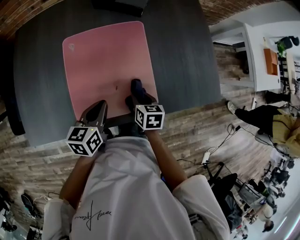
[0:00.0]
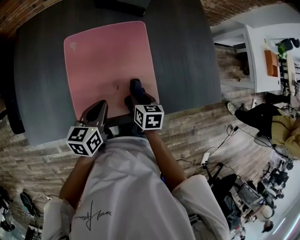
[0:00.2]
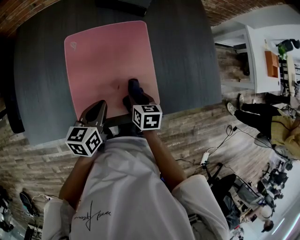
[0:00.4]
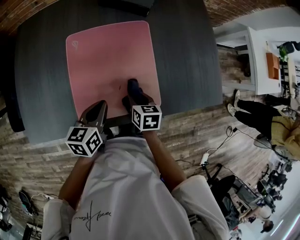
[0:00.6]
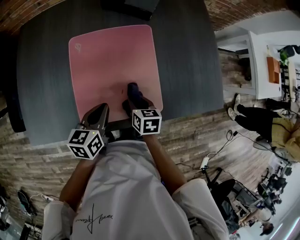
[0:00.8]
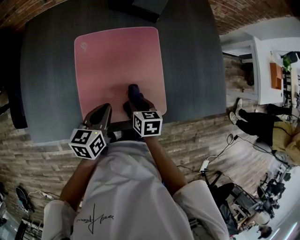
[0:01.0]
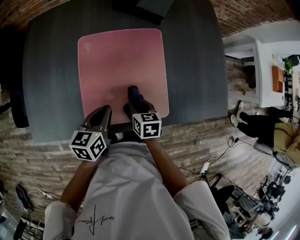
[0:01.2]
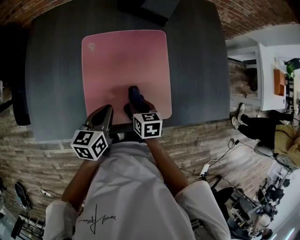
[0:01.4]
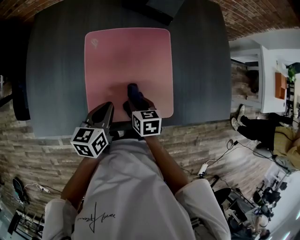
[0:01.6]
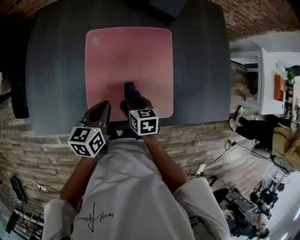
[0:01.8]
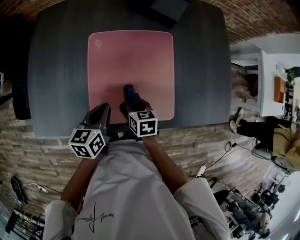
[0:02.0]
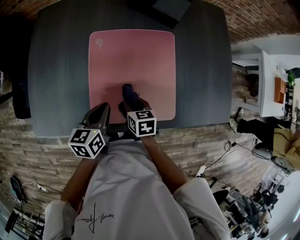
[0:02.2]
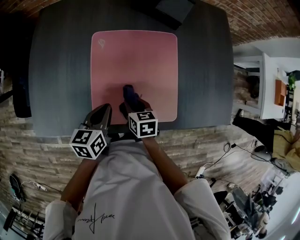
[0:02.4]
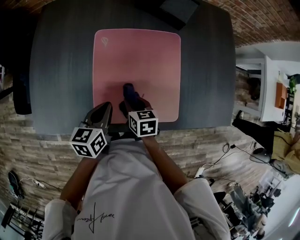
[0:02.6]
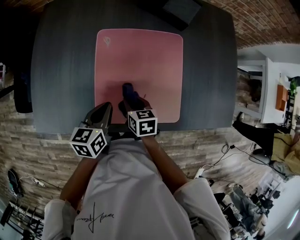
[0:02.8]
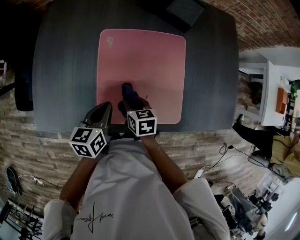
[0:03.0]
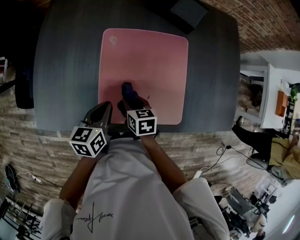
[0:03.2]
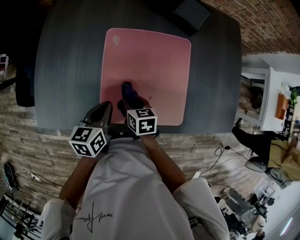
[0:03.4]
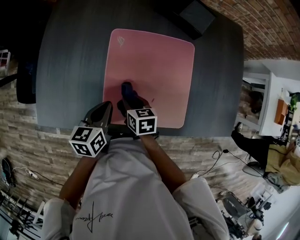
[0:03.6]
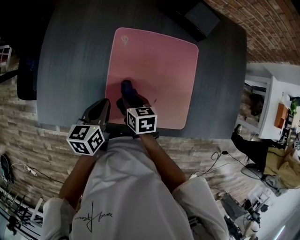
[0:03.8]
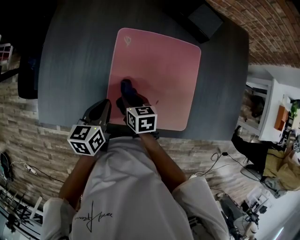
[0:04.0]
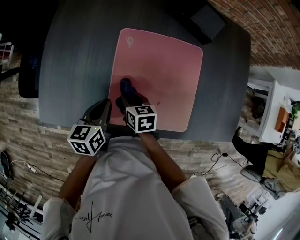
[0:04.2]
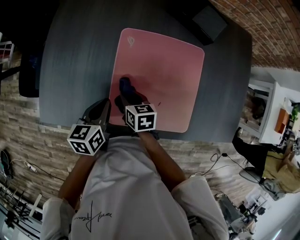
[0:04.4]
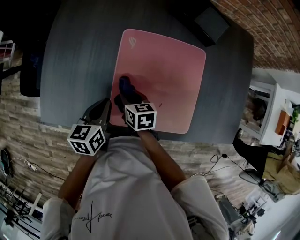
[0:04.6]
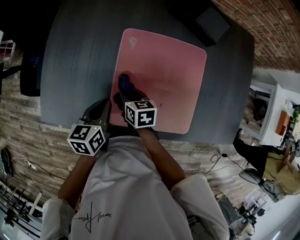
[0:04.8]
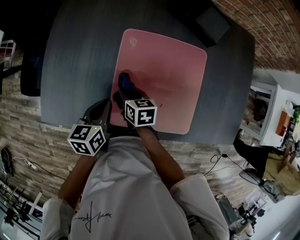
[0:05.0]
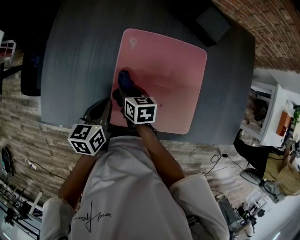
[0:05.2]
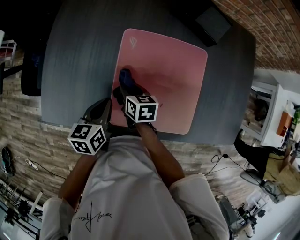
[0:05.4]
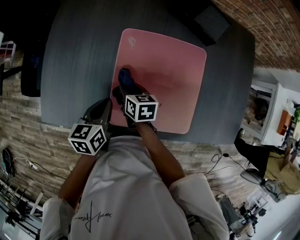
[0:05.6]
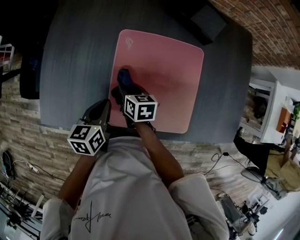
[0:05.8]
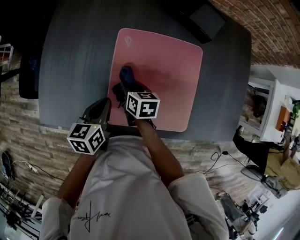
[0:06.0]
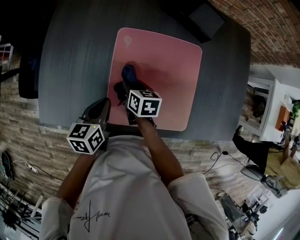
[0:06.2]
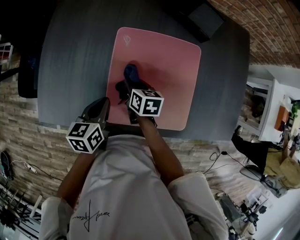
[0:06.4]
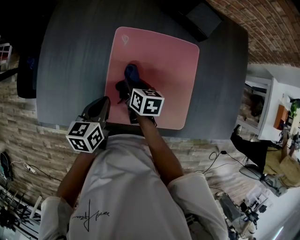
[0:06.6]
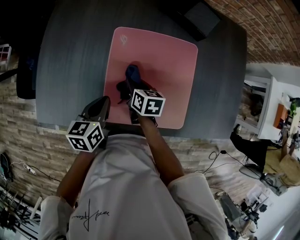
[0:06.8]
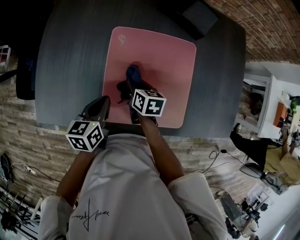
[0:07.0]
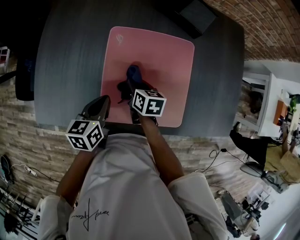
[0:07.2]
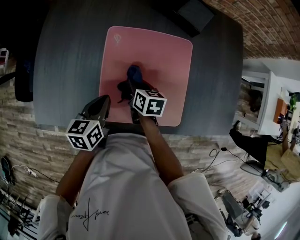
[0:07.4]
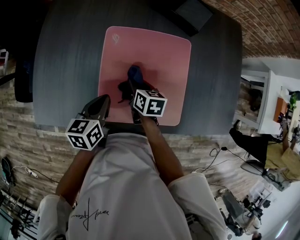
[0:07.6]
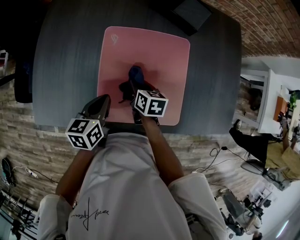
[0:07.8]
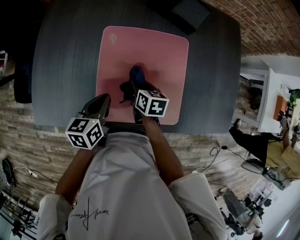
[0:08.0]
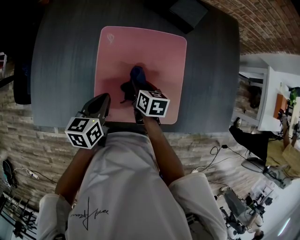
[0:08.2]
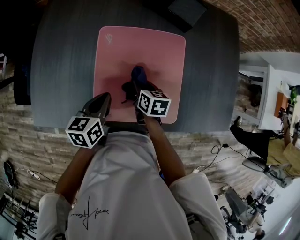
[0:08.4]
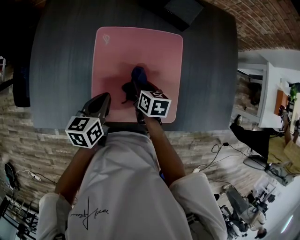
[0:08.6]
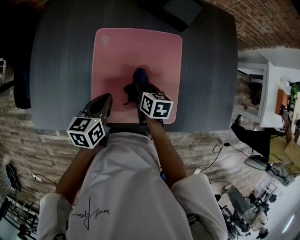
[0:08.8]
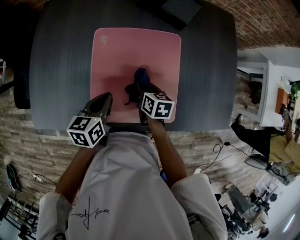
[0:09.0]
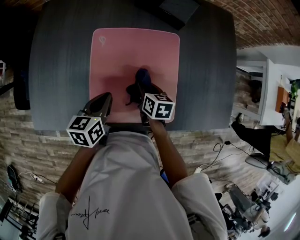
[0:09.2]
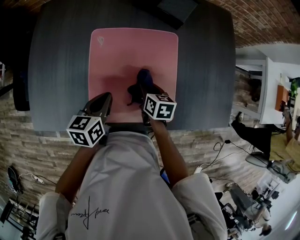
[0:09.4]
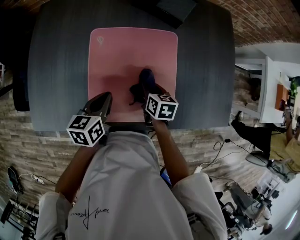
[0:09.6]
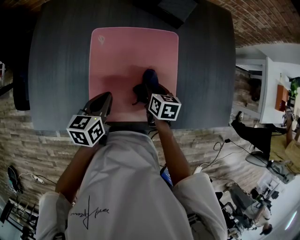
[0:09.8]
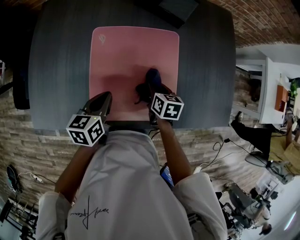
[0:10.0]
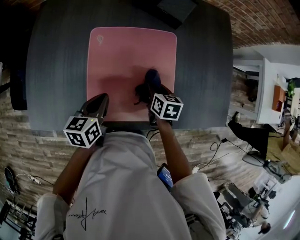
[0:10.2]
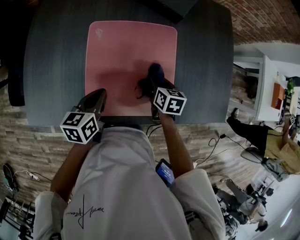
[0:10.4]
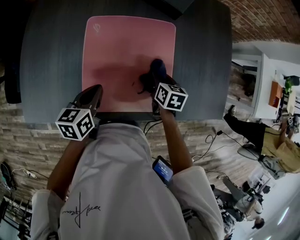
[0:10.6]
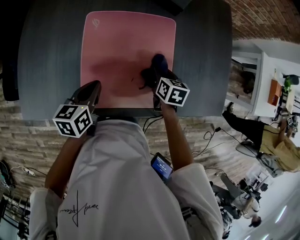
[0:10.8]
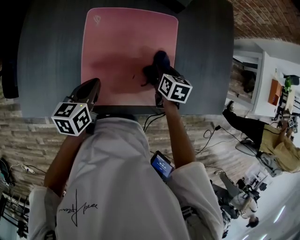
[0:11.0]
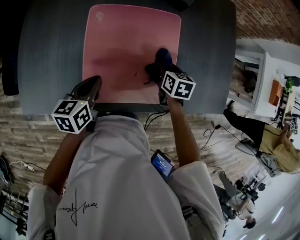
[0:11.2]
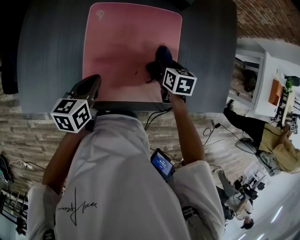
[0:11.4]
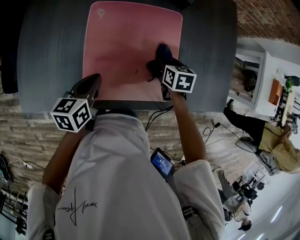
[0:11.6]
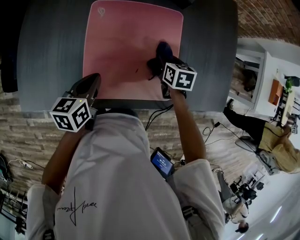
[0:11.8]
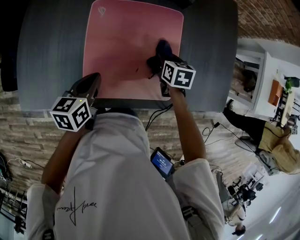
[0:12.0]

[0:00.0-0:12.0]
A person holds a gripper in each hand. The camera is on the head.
0:00.0 to 0:01.6: The right gripper moves to the left, some 10 cm.
0:01.6 to 0:03.0: The two grippers go approximately 5 cm to the left.
0:03.0 to 0:04.4: Both grippers travel together to the left, some 5 cm.
0:04.4 to 0:06.0: The grippers make only small movements.
0:06.0 to 0:07.6: The right gripper shifts approximately 10 cm to the right.
0:07.6 to 0:09.0: The right gripper travels to the right by roughly 5 cm.
0:09.0 to 0:10.4: The right gripper moves to the right, about 10 cm.
0:10.4 to 0:12.0: The grippers make only small movements.

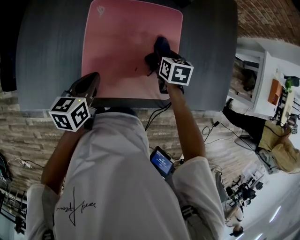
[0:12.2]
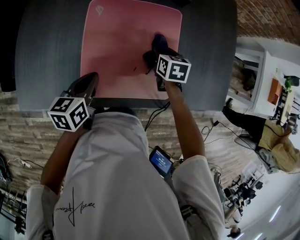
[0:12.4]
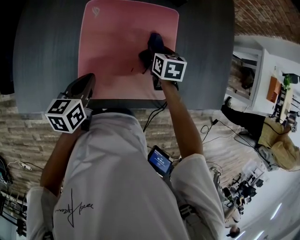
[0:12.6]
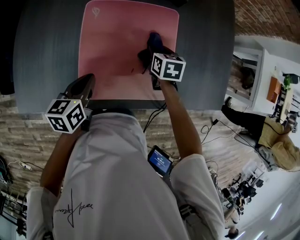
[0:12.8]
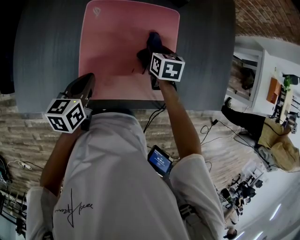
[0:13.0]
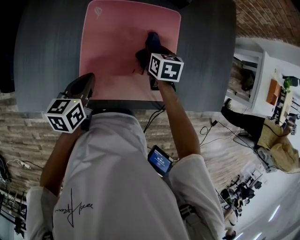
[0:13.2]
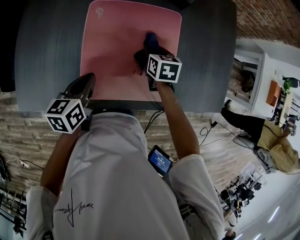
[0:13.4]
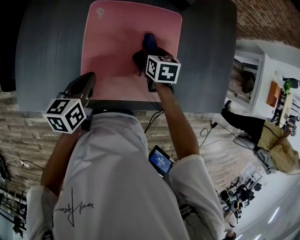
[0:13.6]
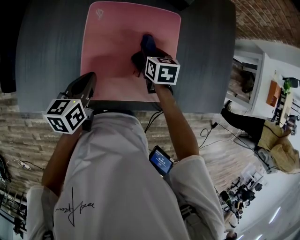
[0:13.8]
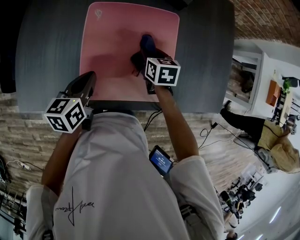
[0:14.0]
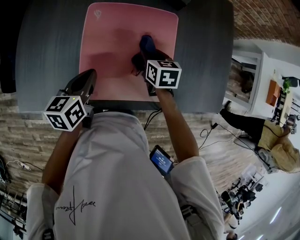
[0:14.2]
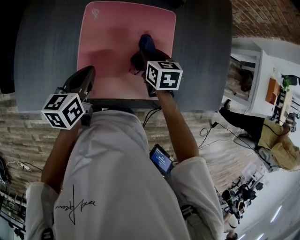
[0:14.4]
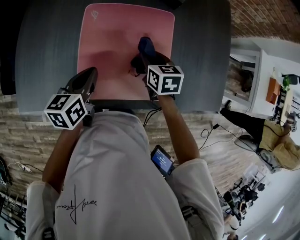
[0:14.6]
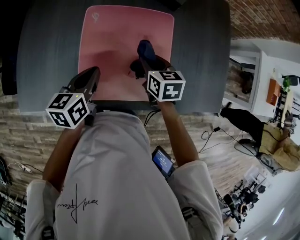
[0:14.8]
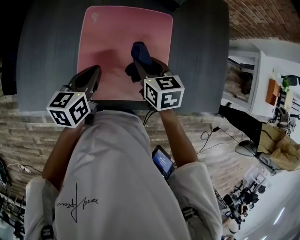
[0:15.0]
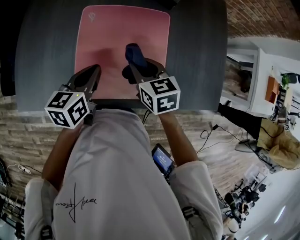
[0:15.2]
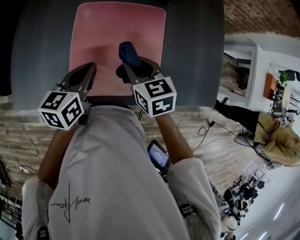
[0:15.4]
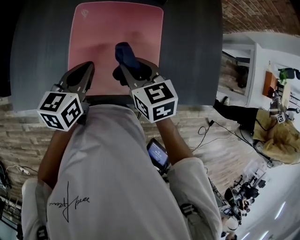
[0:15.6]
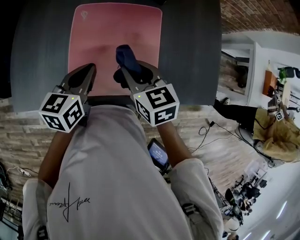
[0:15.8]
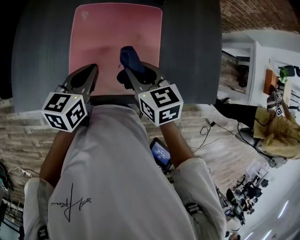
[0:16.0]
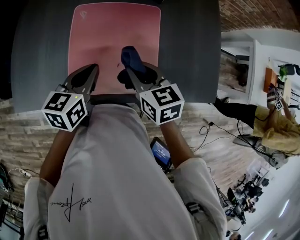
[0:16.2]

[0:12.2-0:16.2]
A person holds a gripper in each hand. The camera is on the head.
0:12.2 to 0:13.6: The right gripper is displaced to the left by about 5 cm.
0:13.6 to 0:14.8: The right gripper shifts approximately 5 cm upward.
0:14.8 to 0:16.2: The right gripper heads backward and upward, covering roughly 10 cm, while the left gripper shifts by about 5 cm.

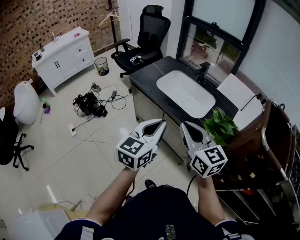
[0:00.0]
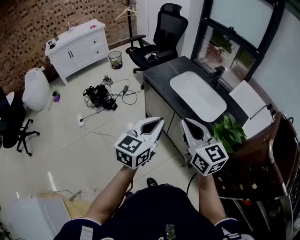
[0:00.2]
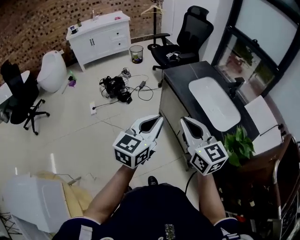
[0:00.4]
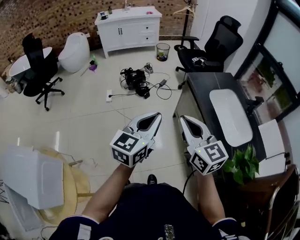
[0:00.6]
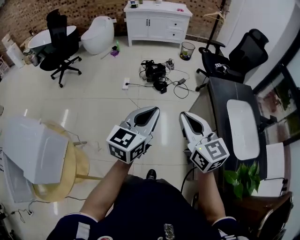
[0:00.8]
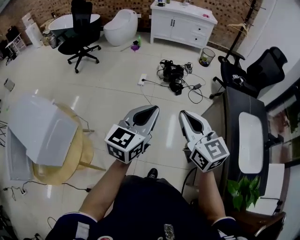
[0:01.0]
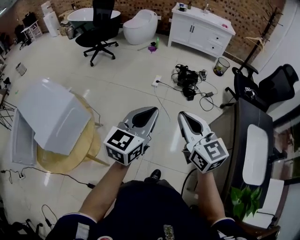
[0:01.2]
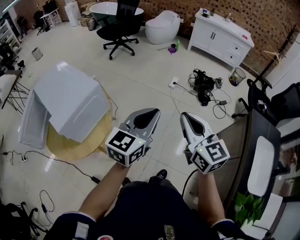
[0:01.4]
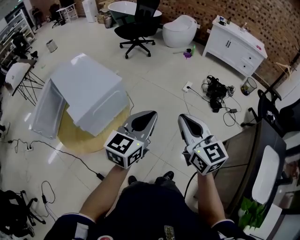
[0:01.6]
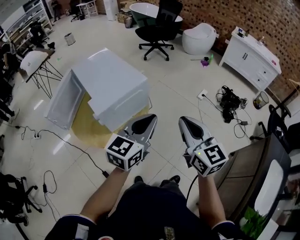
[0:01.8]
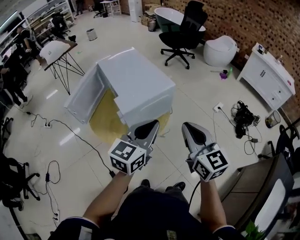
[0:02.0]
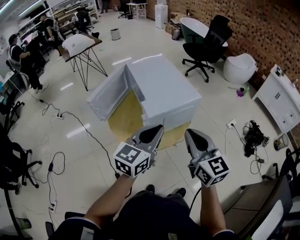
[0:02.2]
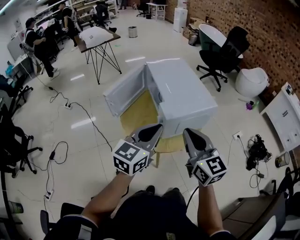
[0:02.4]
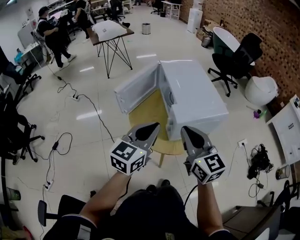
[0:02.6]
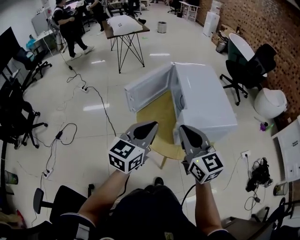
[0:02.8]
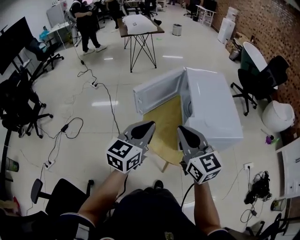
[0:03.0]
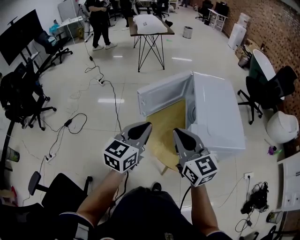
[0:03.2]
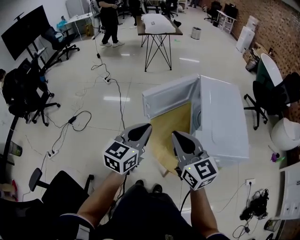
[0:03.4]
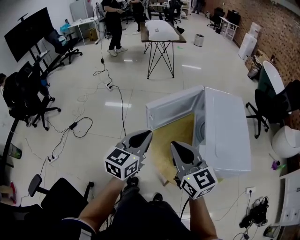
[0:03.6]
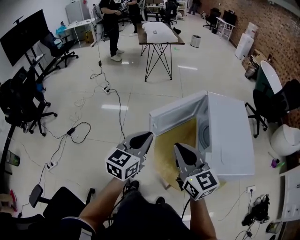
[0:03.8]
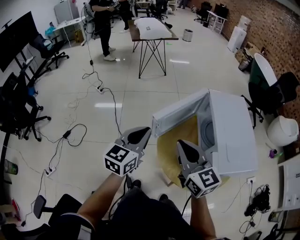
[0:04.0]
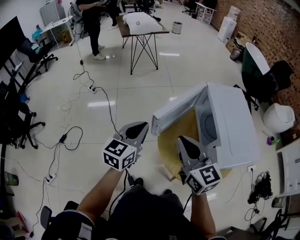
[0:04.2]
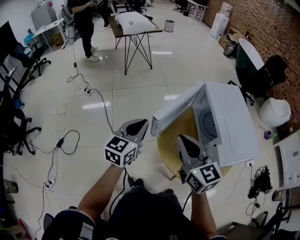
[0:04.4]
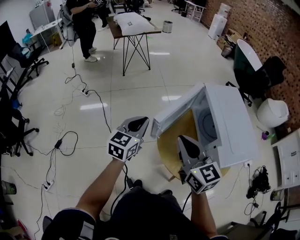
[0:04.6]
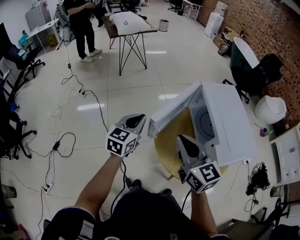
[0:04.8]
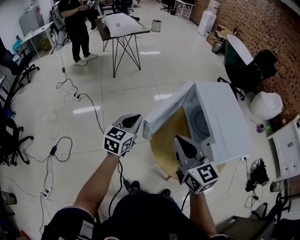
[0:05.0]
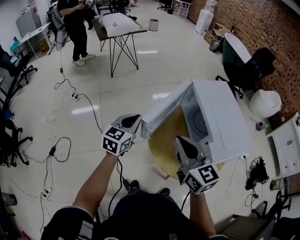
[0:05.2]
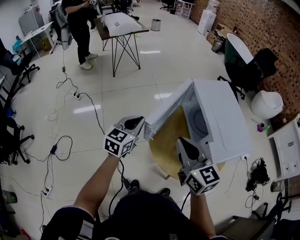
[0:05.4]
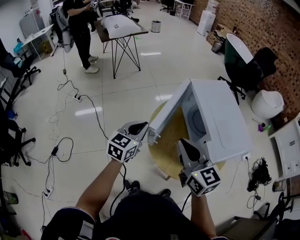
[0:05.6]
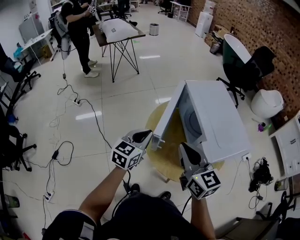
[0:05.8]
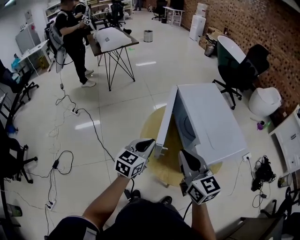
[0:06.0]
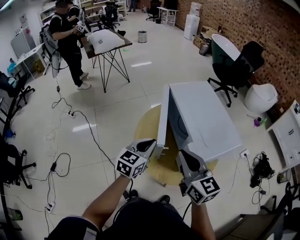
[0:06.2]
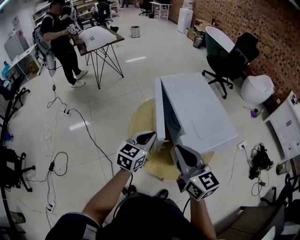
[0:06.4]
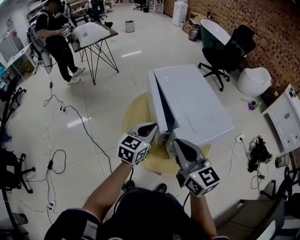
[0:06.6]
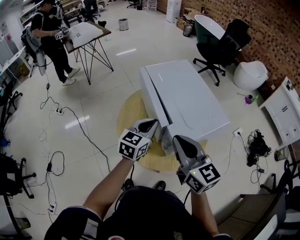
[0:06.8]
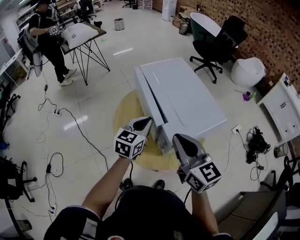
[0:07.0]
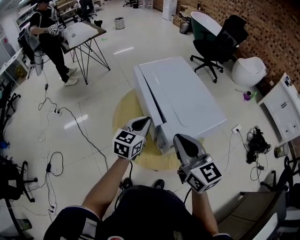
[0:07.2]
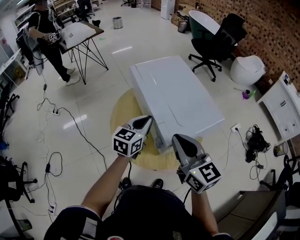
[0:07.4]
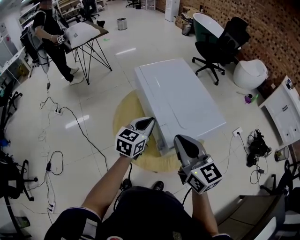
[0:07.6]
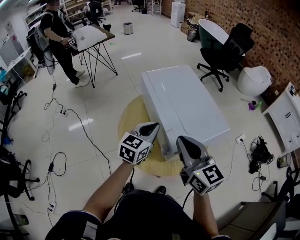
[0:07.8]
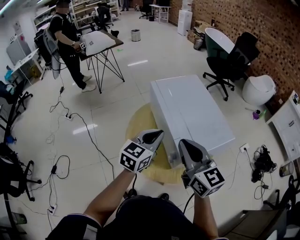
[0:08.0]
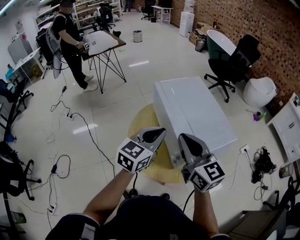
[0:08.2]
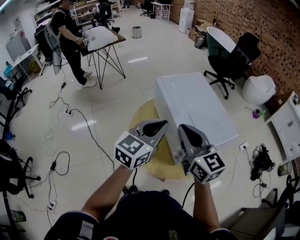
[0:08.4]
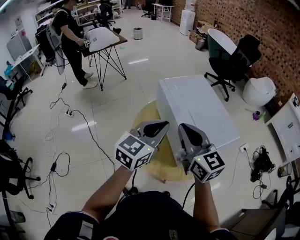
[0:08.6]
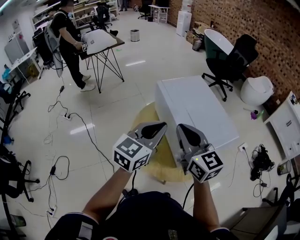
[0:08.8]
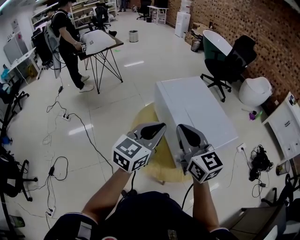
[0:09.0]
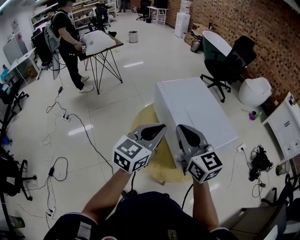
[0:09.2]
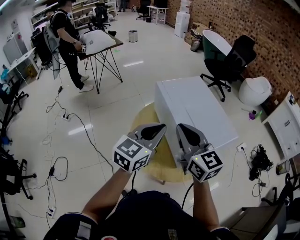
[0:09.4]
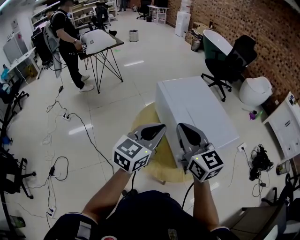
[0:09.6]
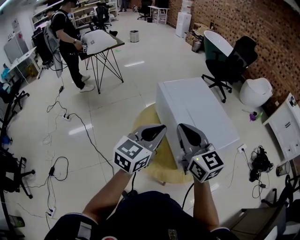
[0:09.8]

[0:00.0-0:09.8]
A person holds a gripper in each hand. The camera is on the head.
0:00.0 to 0:01.4: The left gripper changes place by some 40 cm, and swivels roughly 70 degrees. Meanwhile the right gripper moves roughly 40 cm, and changes its angle by about 70 degrees.
0:01.4 to 0:02.8: The pair of grippers is taken some 50 cm. The right gripper swivels about 50 degrees. Meanwhile the left gripper swivels about 50 degrees.
0:02.8 to 0:04.2: Both grippers move forward and to the left, roughly 20 cm.
0:04.2 to 0:05.6: The left gripper is displaced to the right by about 5 cm.
0:05.6 to 0:07.0: The grippers both shift to the right by roughly 20 cm.
0:07.0 to 0:08.4: The right gripper goes about 10 cm to the left and forward; the left gripper goes approximately 10 cm upward.
0:08.4 to 0:09.8: The grippers make only small movements.
